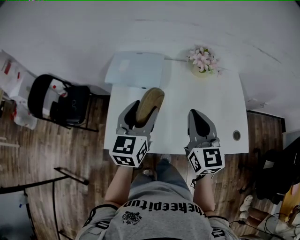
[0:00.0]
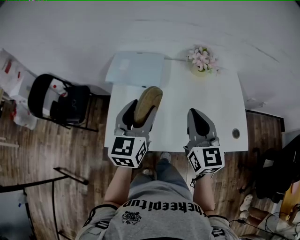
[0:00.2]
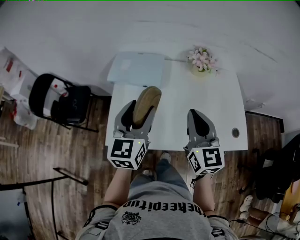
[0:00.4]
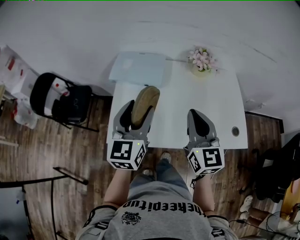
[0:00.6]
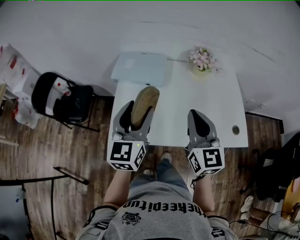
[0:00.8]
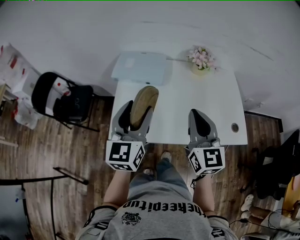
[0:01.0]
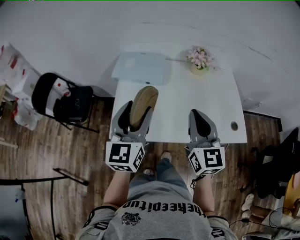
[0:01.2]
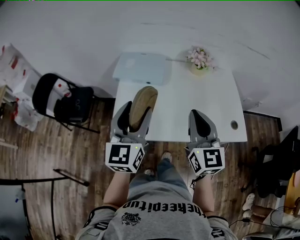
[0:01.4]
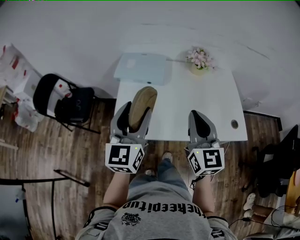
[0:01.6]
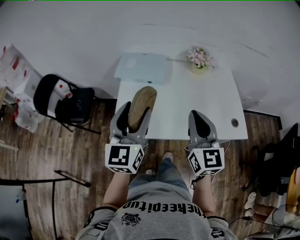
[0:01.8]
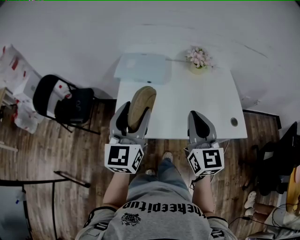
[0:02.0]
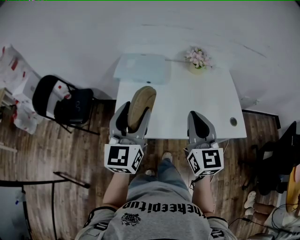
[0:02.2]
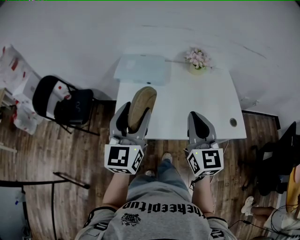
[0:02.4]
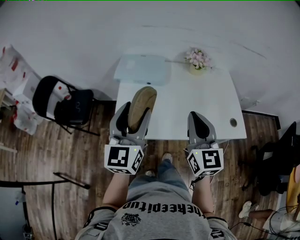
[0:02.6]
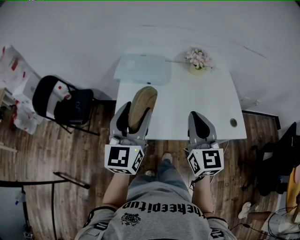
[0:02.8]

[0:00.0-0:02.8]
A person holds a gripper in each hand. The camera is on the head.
0:00.0 to 0:01.4: The left gripper heads backward, upward and to the left, covering approximately 15 cm, while the right gripper is displaced backward by approximately 10 cm.
0:01.4 to 0:02.8: The grippers make only small movements.

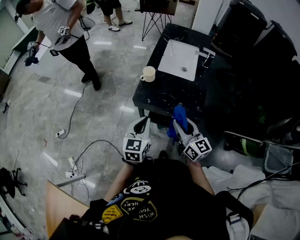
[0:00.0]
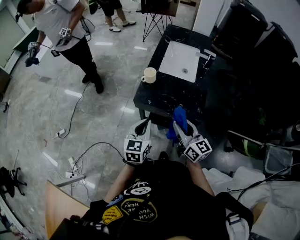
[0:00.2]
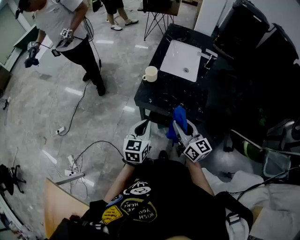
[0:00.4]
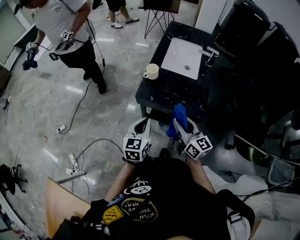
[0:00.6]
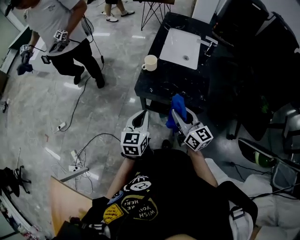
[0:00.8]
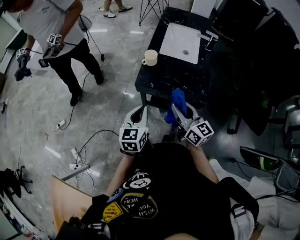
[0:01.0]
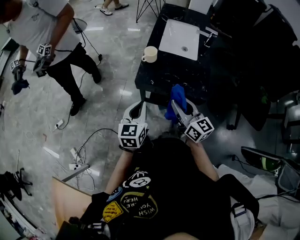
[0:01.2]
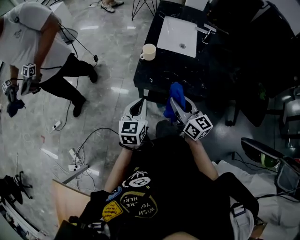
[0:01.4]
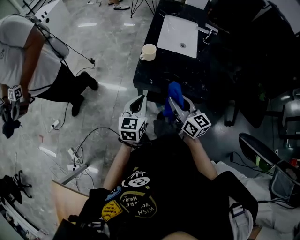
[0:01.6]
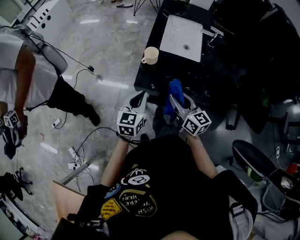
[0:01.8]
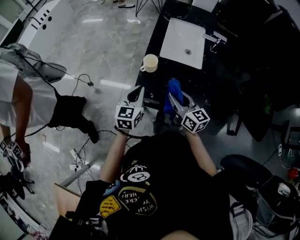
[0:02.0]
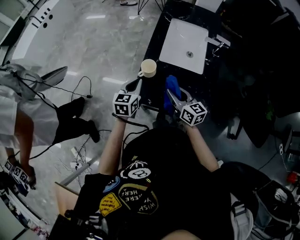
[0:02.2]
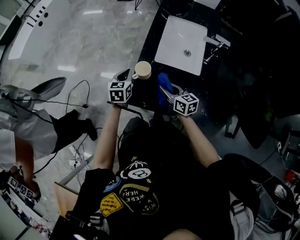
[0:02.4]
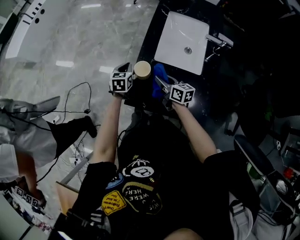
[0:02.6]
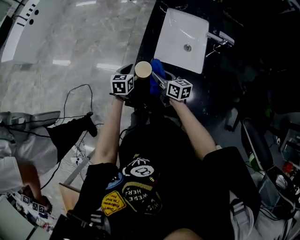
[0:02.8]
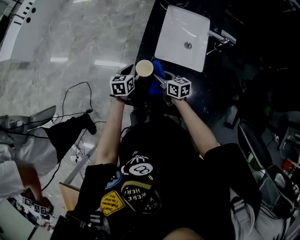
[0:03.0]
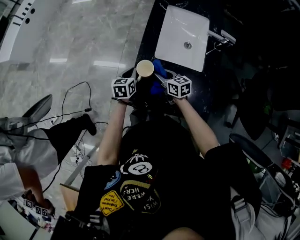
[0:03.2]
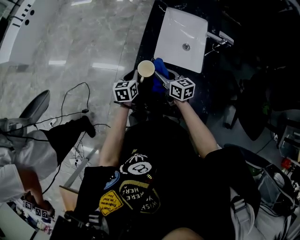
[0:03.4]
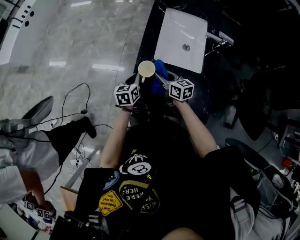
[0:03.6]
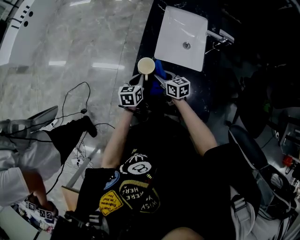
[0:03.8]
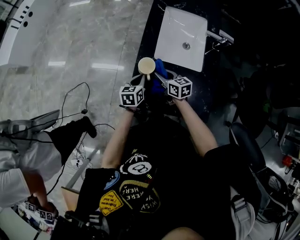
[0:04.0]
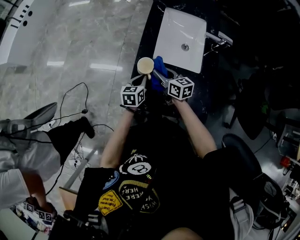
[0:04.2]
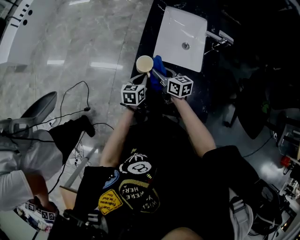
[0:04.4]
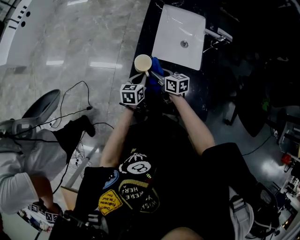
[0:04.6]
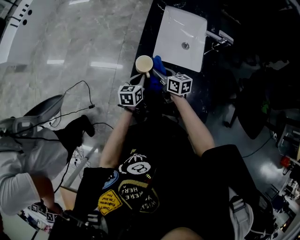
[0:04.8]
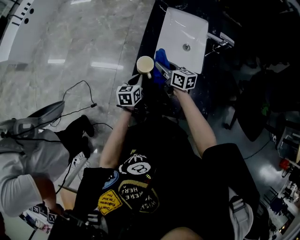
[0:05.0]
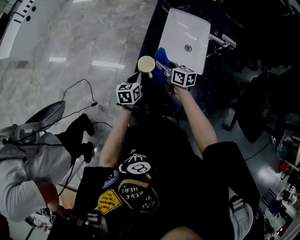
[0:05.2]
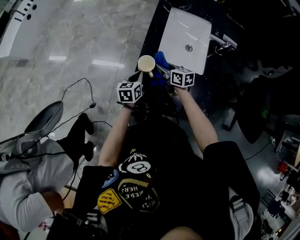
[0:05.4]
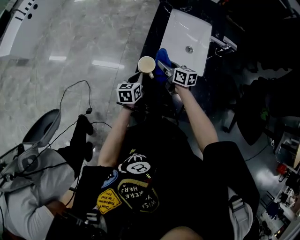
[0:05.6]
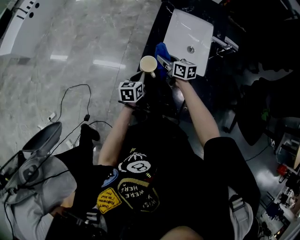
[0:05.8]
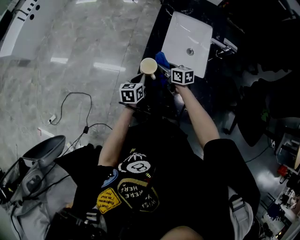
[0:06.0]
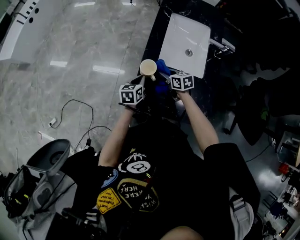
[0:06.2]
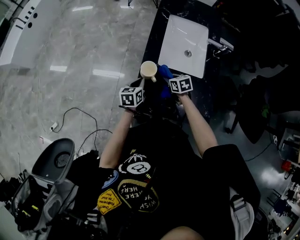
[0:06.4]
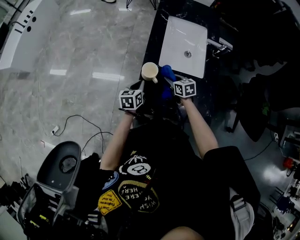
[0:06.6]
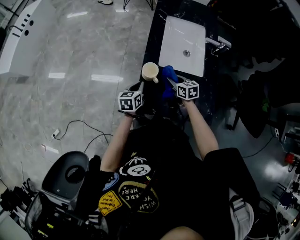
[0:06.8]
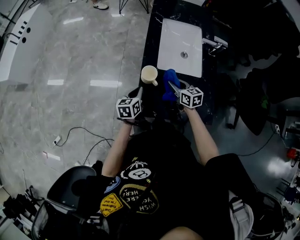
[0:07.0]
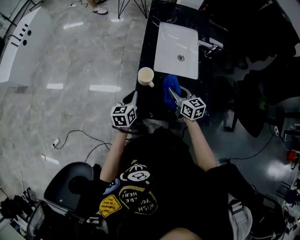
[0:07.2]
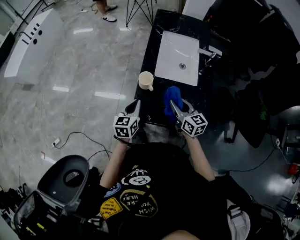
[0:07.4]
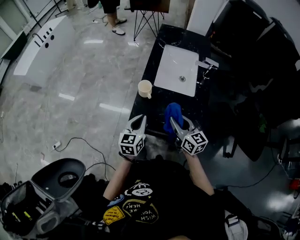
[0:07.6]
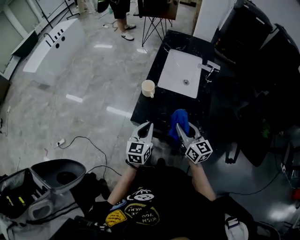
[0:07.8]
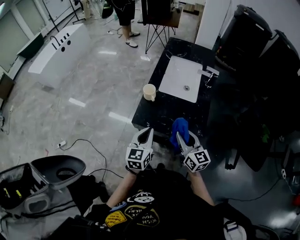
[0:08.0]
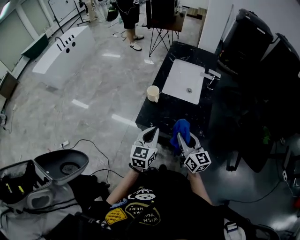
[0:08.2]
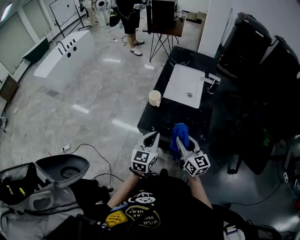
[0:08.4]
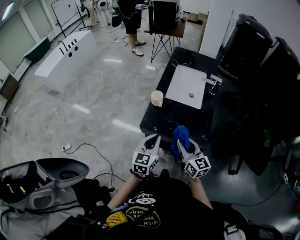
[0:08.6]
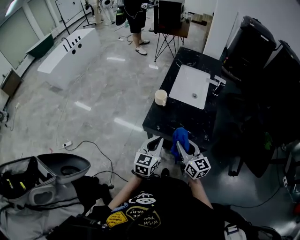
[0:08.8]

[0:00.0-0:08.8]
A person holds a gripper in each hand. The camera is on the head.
0:00.0 to 0:01.4: The grippers both shift to the left by about 5 cm.
0:01.4 to 0:03.0: The two grippers go about 40 cm forward and downward. The left gripper changes its angle by approximately 20 degrees. Meanwhile the right gripper rotates approximately 30 degrees.
0:03.0 to 0:04.4: The left gripper goes approximately 10 cm to the right and backward. The right gripper swings up and down, roughly 5 cm each way, with 2 reversals.
0:04.4 to 0:05.8: The right gripper is displaced forward by some 10 cm.
0:05.8 to 0:07.4: The right gripper moves backward and upward, approximately 20 cm, and rotates roughly 20 degrees. The left gripper moves upward and backward, approximately 15 cm.
0:07.4 to 0:08.8: The right gripper shifts about 20 cm backward. The left gripper moves backward and upward, roughly 25 cm.

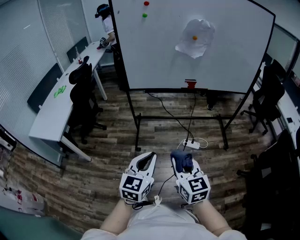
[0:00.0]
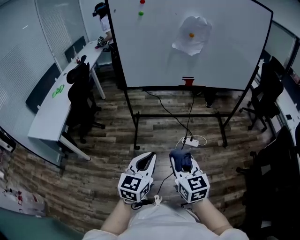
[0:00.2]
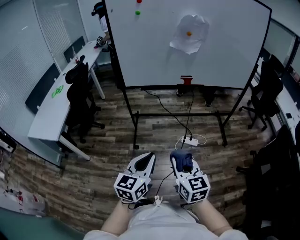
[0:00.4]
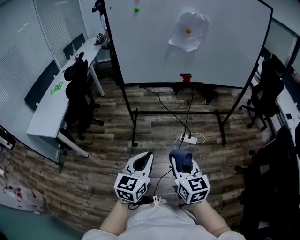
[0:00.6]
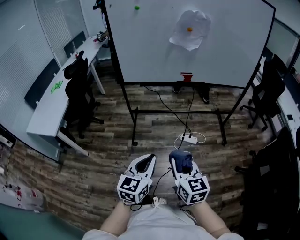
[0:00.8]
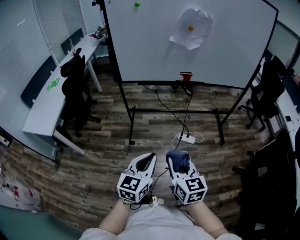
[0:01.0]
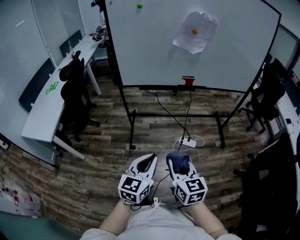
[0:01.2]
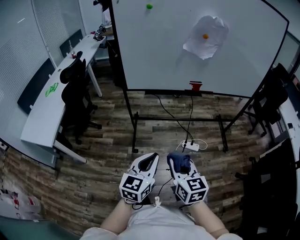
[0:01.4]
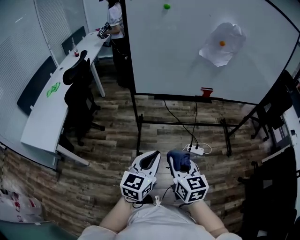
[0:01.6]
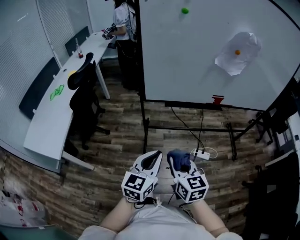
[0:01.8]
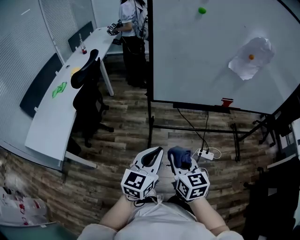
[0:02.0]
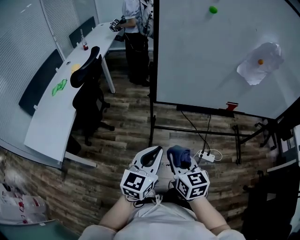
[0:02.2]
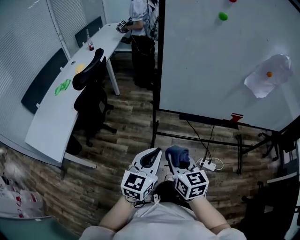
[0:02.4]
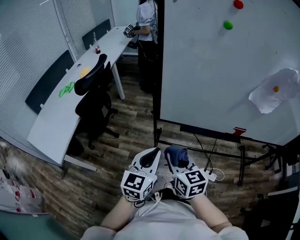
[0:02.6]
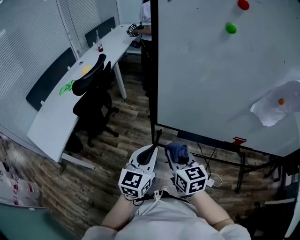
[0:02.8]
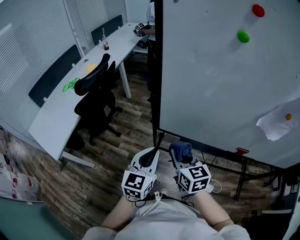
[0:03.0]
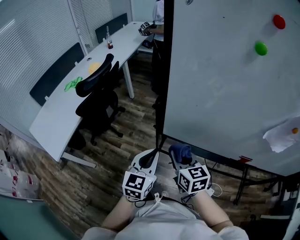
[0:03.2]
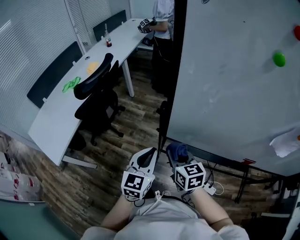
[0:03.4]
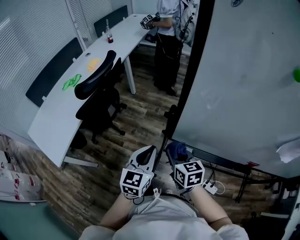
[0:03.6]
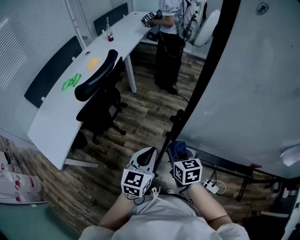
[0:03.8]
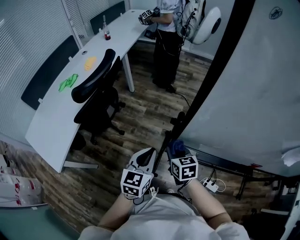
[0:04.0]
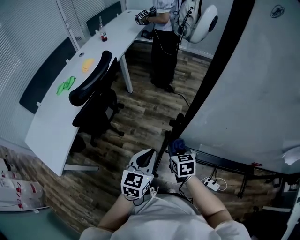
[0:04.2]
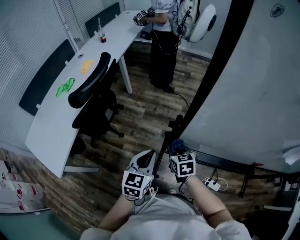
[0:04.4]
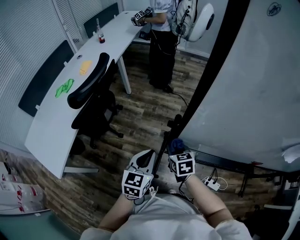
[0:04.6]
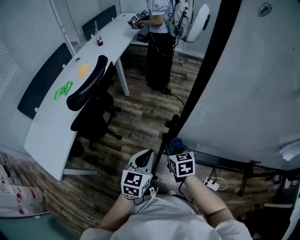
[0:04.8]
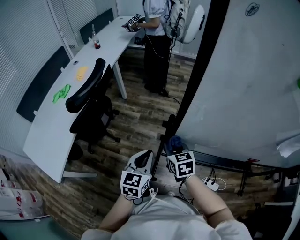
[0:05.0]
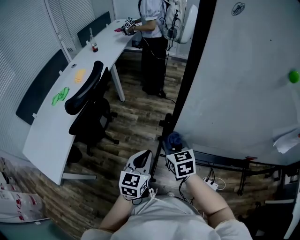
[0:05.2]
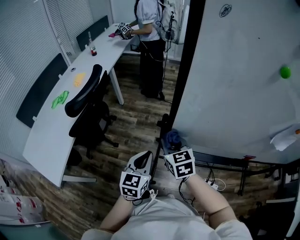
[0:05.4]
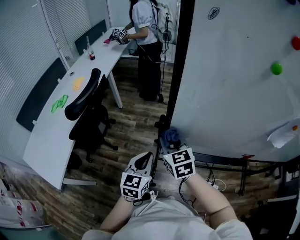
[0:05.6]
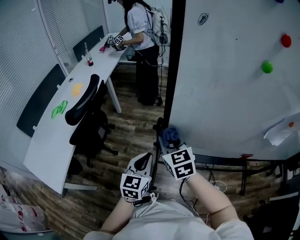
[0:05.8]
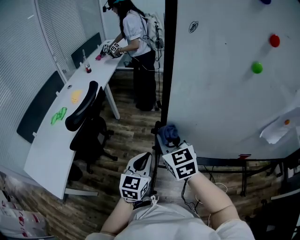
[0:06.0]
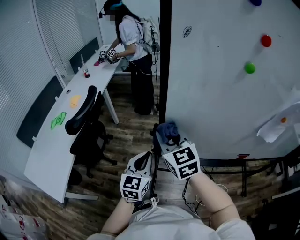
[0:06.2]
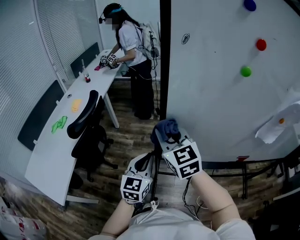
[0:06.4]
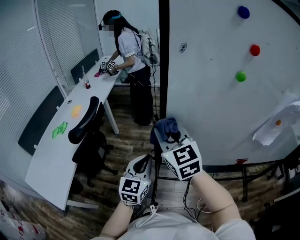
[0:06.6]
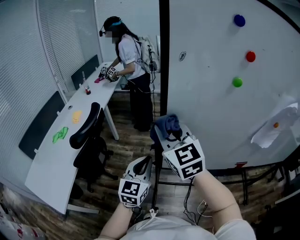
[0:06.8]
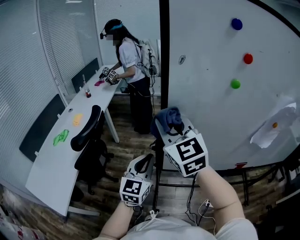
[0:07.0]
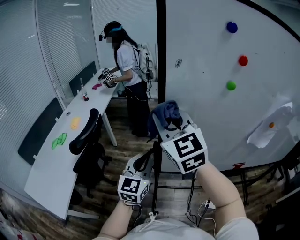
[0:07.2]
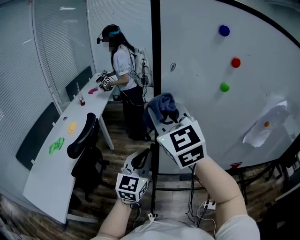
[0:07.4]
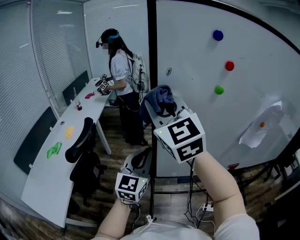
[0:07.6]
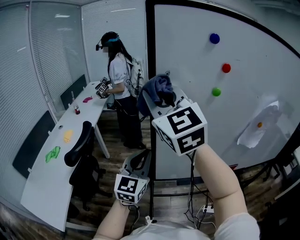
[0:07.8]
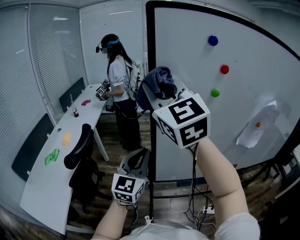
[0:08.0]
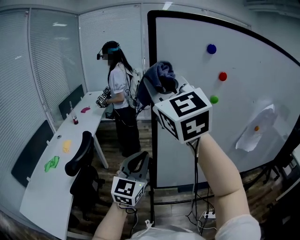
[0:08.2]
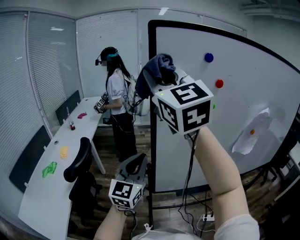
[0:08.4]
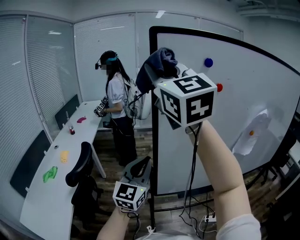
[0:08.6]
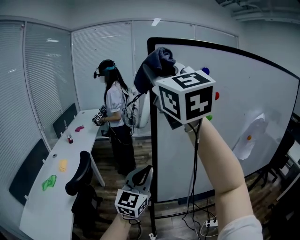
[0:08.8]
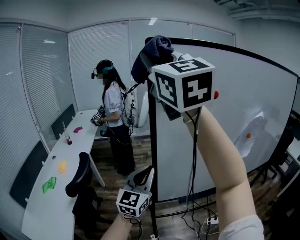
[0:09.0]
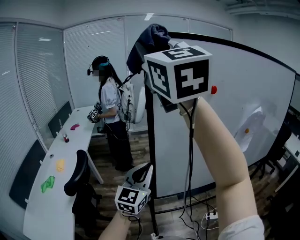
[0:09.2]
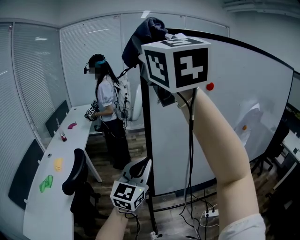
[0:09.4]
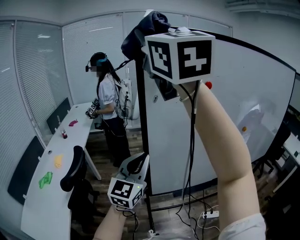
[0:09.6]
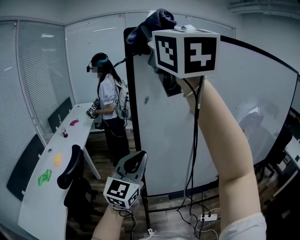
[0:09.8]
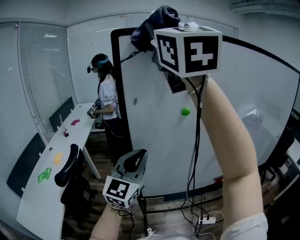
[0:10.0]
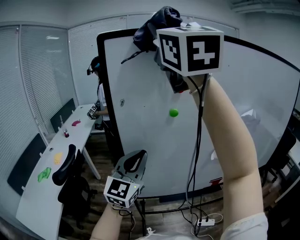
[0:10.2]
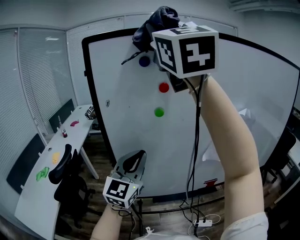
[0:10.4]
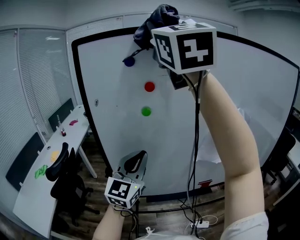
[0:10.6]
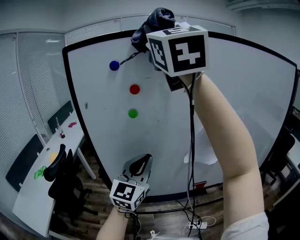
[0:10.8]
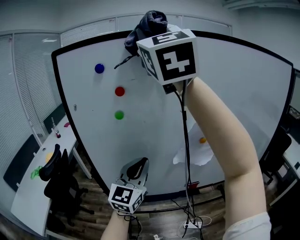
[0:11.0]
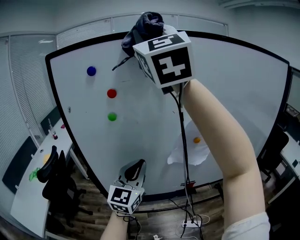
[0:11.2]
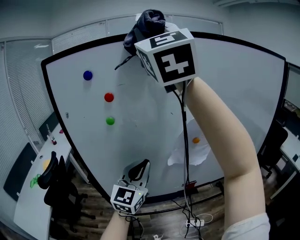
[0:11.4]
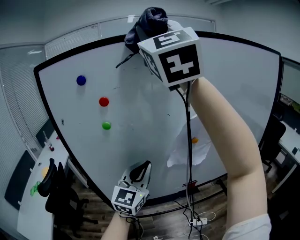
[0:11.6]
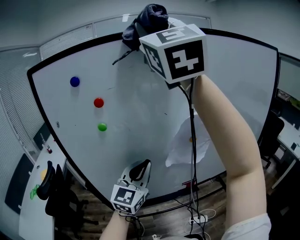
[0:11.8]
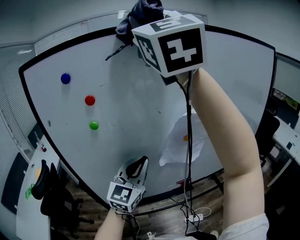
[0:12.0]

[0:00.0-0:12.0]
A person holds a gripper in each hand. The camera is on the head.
0:00.0 to 0:01.6: The two grippers go some 20 cm forward and to the left.
0:01.6 to 0:03.0: Both grippers move forward, some 35 cm. The right gripper changes its angle by roughly 20 degrees, while the left gripper rotates some 20 degrees.
0:03.0 to 0:04.4: The left gripper moves forward, to the left and downward, about 15 cm; the right gripper moves forward, downward and to the left, some 25 cm, and changes its angle by about 20 degrees.
0:04.4 to 0:06.0: The left gripper goes roughly 5 cm upward. The right gripper goes approximately 25 cm upward, and turns by some 30 degrees.
0:06.0 to 0:07.6: The left gripper shifts about 20 cm upward, and rotates some 20 degrees. Meanwhile the right gripper heads upward, covering approximately 30 cm, and changes its angle by about 30 degrees.
0:07.6 to 0:09.0: The right gripper travels upward by about 25 cm.
0:09.0 to 0:10.4: The left gripper travels to the right and upward by some 15 cm, while the right gripper goes approximately 20 cm to the right.
0:10.4 to 0:12.0: The grippers both shift to the right by roughly 20 cm.
